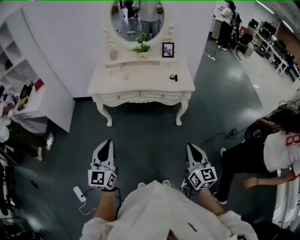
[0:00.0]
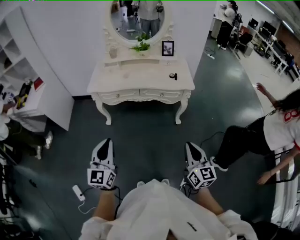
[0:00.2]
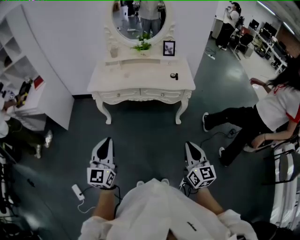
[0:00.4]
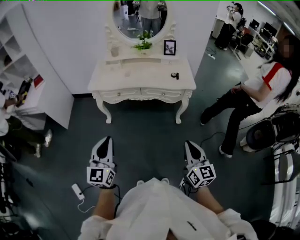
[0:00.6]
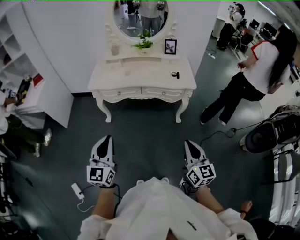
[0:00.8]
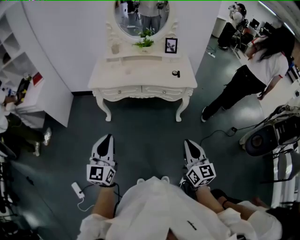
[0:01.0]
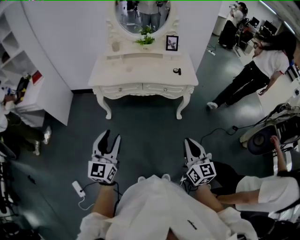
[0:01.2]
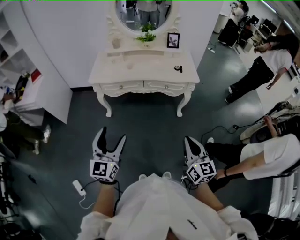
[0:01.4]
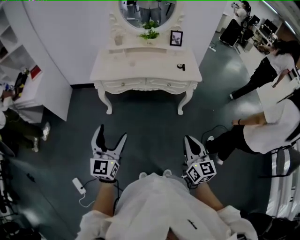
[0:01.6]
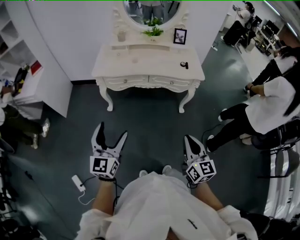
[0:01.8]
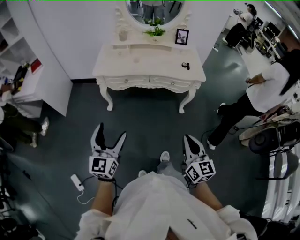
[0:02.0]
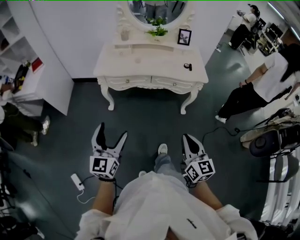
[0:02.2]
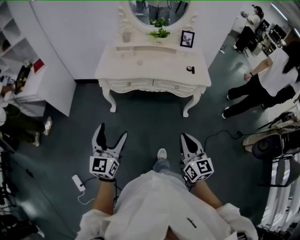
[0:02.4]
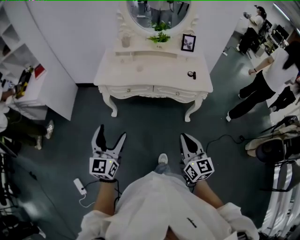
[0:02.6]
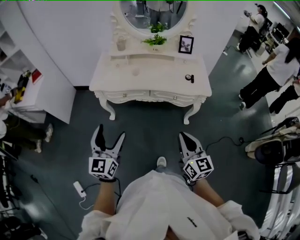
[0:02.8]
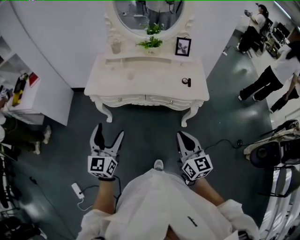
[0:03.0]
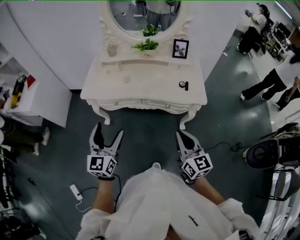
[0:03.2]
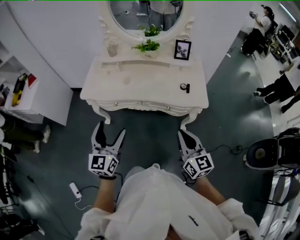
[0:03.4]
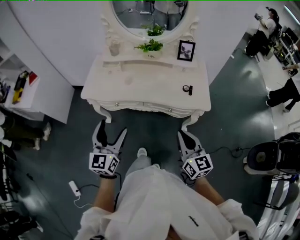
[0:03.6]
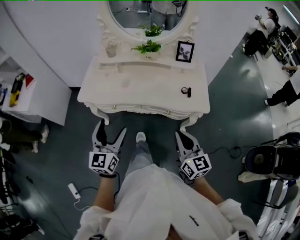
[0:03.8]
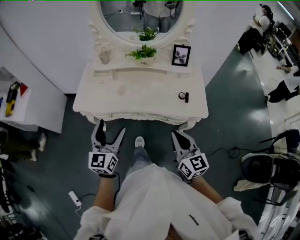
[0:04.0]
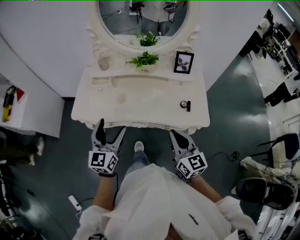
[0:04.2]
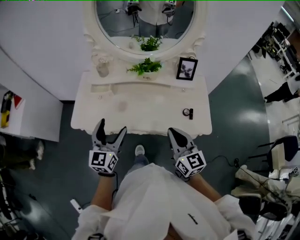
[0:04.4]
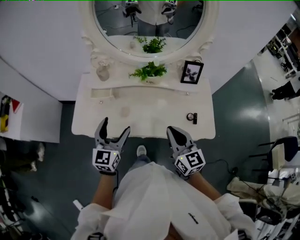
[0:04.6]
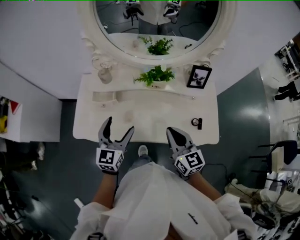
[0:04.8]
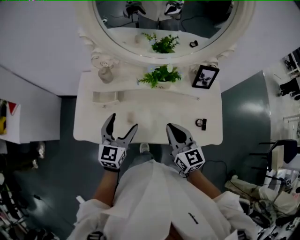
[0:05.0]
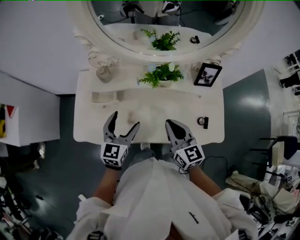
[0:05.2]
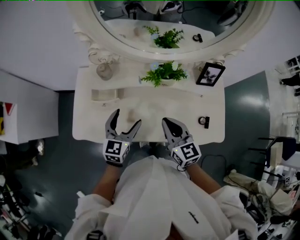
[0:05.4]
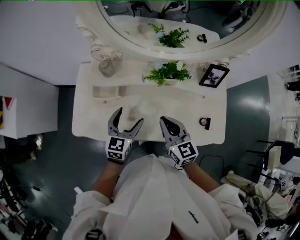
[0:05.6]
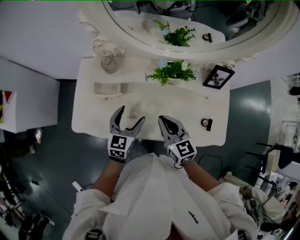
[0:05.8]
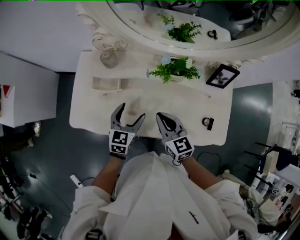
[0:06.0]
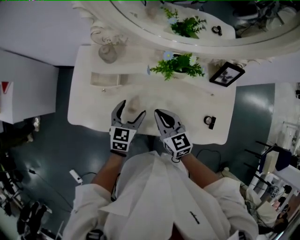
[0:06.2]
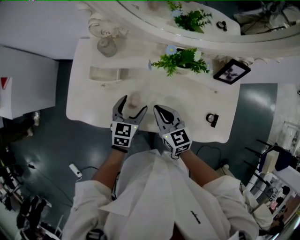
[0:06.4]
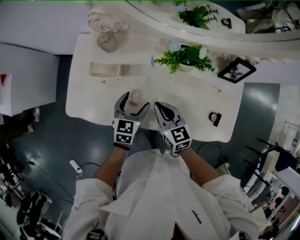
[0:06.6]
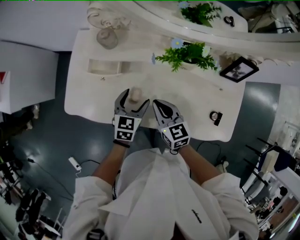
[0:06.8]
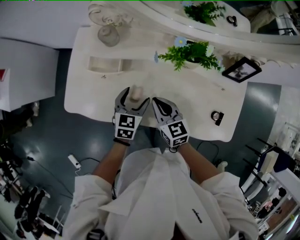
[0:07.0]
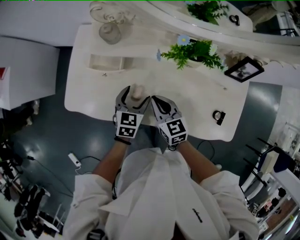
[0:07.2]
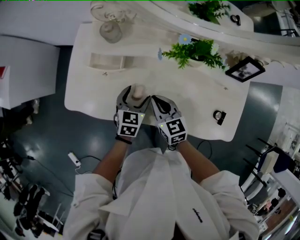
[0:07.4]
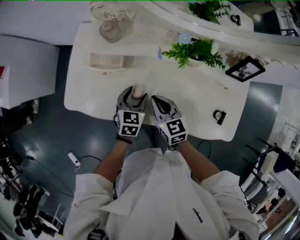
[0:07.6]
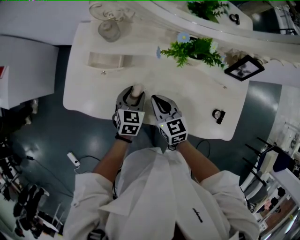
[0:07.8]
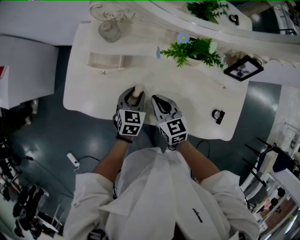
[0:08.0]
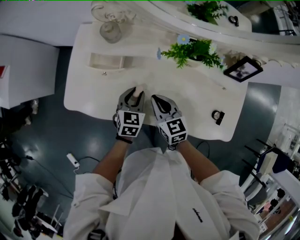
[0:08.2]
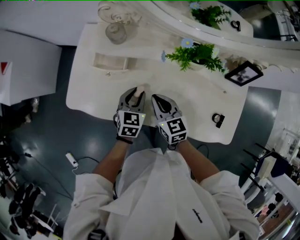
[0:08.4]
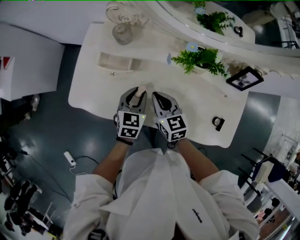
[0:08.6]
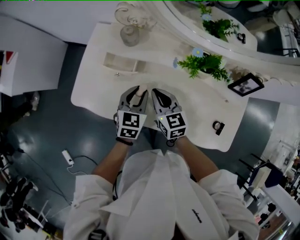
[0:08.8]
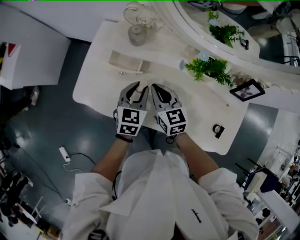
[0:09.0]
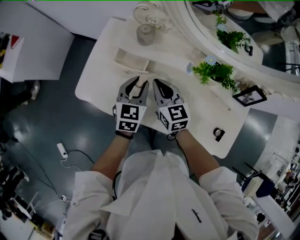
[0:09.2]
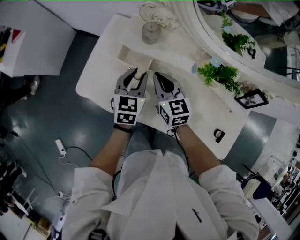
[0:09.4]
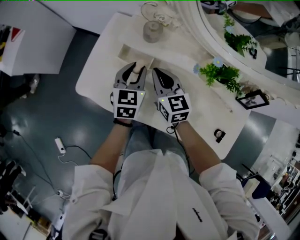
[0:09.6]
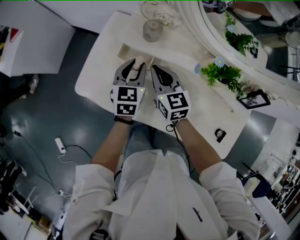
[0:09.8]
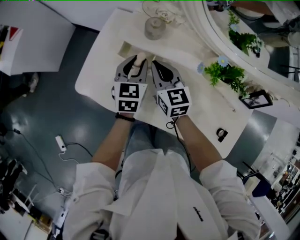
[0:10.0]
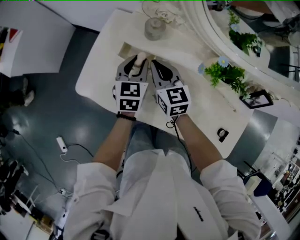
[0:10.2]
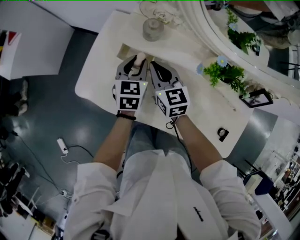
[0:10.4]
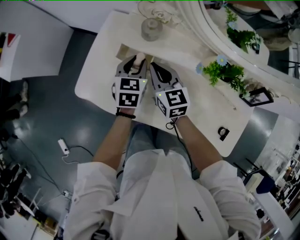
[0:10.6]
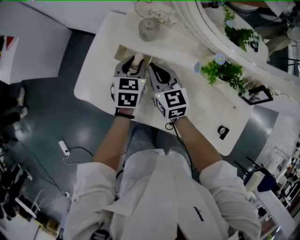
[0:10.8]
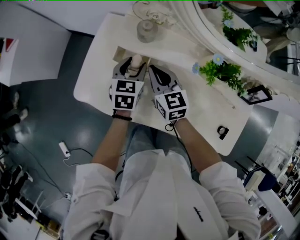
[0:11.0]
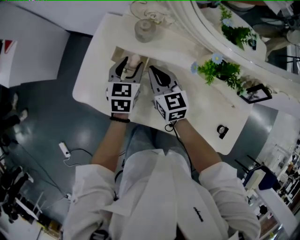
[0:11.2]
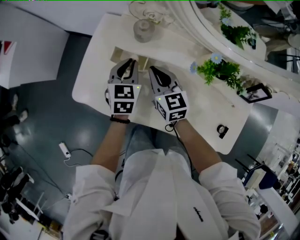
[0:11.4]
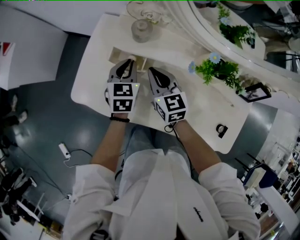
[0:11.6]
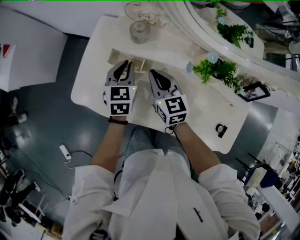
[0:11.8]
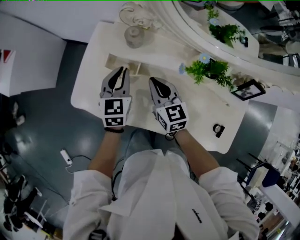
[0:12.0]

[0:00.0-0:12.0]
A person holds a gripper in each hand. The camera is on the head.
0.0 to 1.6 s: The left gripper goes some 5 cm to the left, and opens. The right gripper heads to the left, covering about 10 cm.
1.6 to 3.0 s: Both grippers travel together forward, roughly 20 cm.
3.0 to 4.4 s: Both grippers move forward, some 30 cm.
4.4 to 6.0 s: The right gripper moves forward, downward and to the left, approximately 30 cm, while the left gripper shifts roughly 25 cm forward and downward, and rotates some 20 degrees.
6.0 to 7.6 s: The grippers both shift downward by some 10 cm.
7.6 to 9.0 s: The right gripper is displaced forward and to the left by roughly 10 cm. The left gripper heads upward, covering approximately 10 cm, and closes.
9.0 to 10.4 s: Both grippers move forward, about 10 cm.
10.4 to 12.0 s: The right gripper changes place by roughly 5 cm.

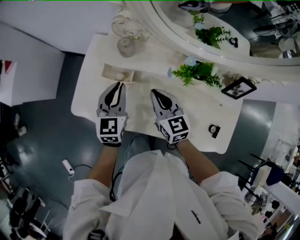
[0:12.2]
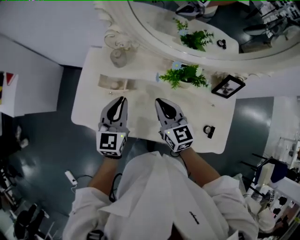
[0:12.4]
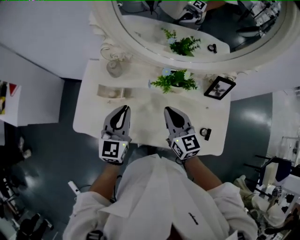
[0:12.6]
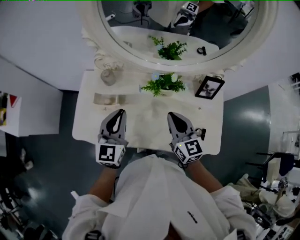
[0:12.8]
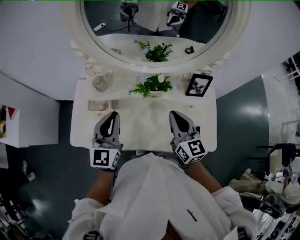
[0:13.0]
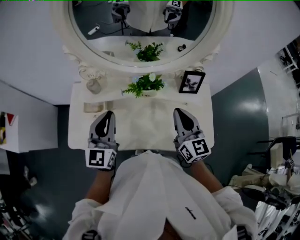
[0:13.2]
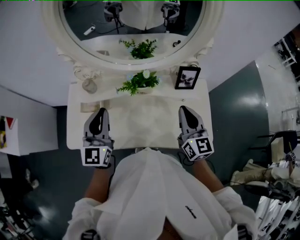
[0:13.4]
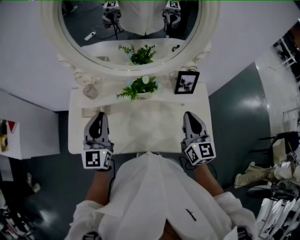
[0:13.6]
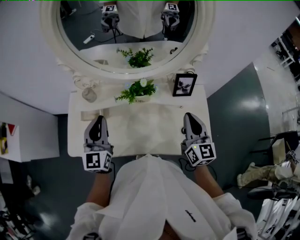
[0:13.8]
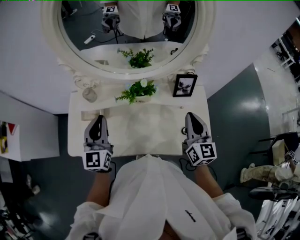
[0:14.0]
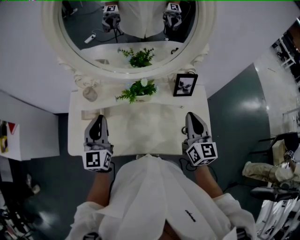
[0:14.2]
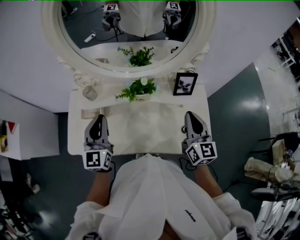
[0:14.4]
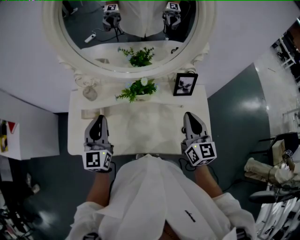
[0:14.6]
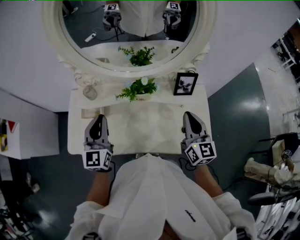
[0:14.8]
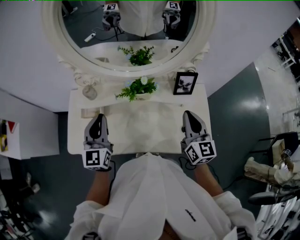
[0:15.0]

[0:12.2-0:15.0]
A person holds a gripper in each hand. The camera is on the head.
12.2 to 13.6 s: The right gripper is displaced to the right and upward by roughly 35 cm, and rotates approximately 40 degrees; the left gripper is displaced upward and to the right by some 20 cm, and rotates about 30 degrees.
13.6 to 15.0 s: The grippers stay close to where they were, moving slightly.

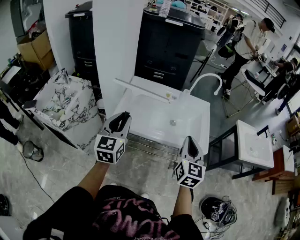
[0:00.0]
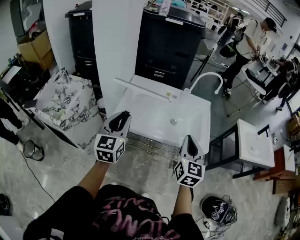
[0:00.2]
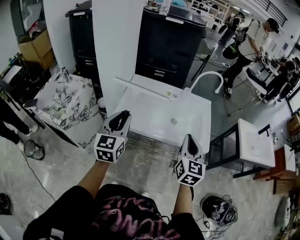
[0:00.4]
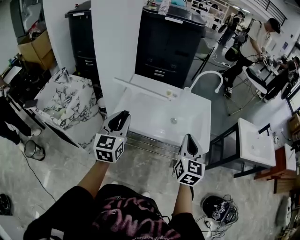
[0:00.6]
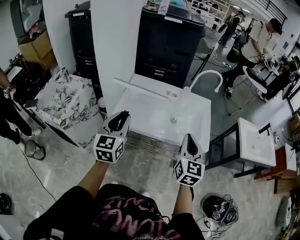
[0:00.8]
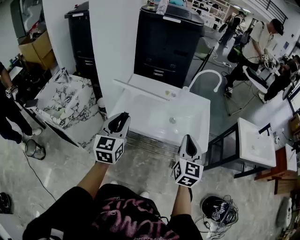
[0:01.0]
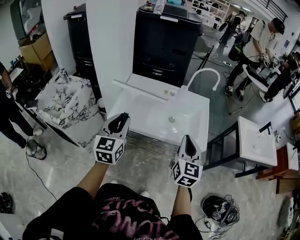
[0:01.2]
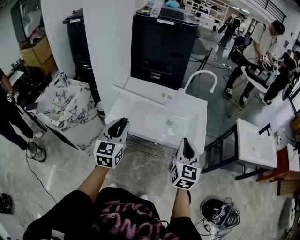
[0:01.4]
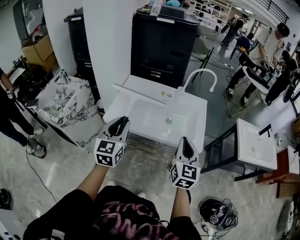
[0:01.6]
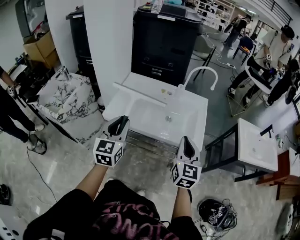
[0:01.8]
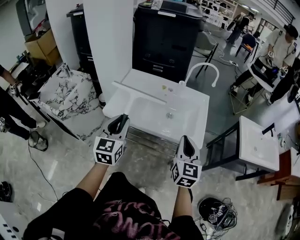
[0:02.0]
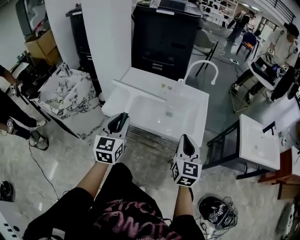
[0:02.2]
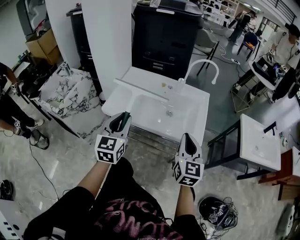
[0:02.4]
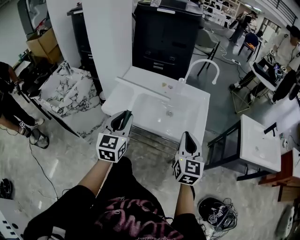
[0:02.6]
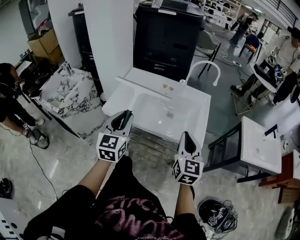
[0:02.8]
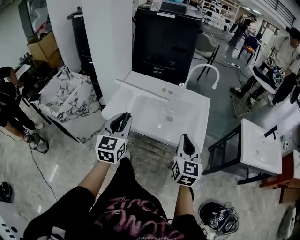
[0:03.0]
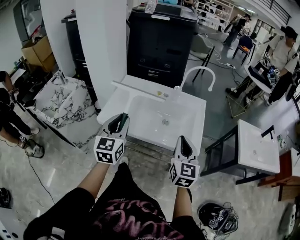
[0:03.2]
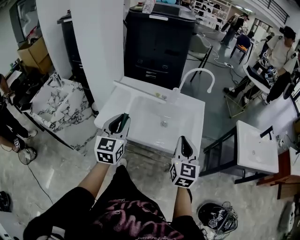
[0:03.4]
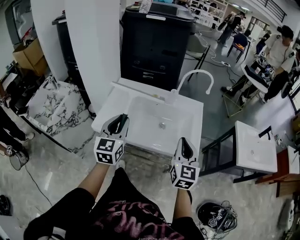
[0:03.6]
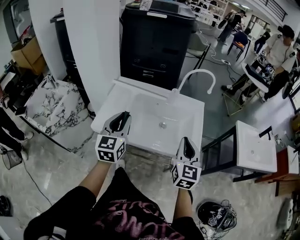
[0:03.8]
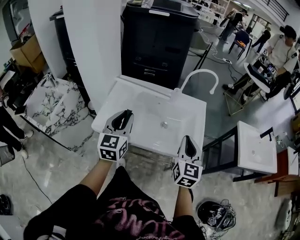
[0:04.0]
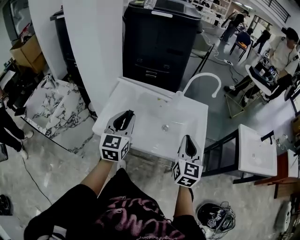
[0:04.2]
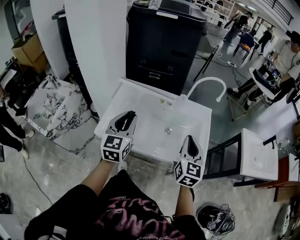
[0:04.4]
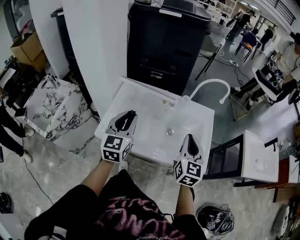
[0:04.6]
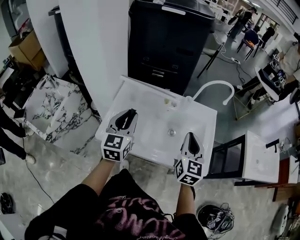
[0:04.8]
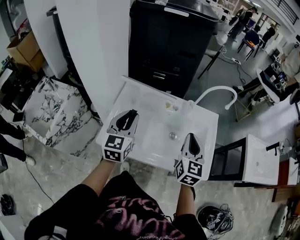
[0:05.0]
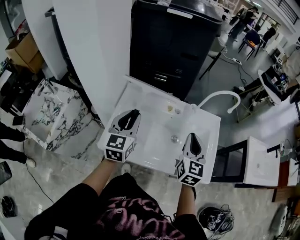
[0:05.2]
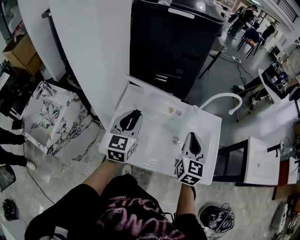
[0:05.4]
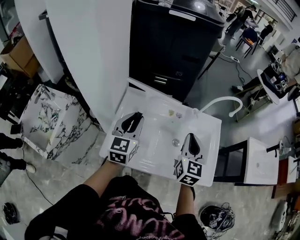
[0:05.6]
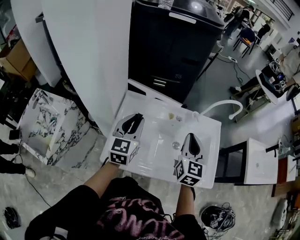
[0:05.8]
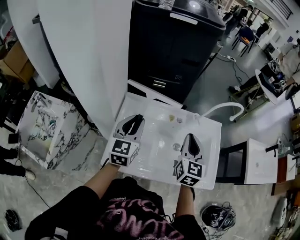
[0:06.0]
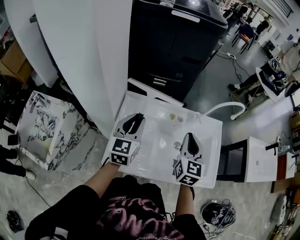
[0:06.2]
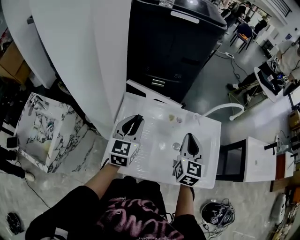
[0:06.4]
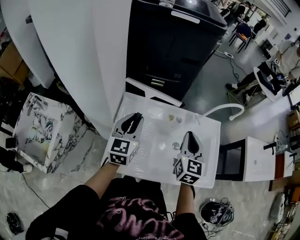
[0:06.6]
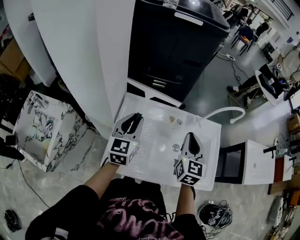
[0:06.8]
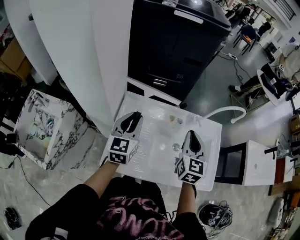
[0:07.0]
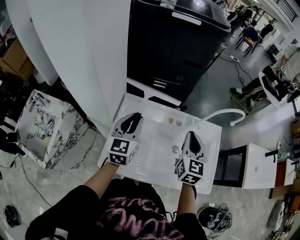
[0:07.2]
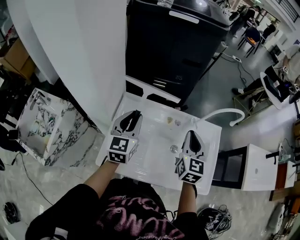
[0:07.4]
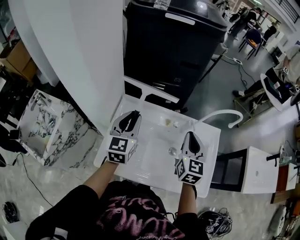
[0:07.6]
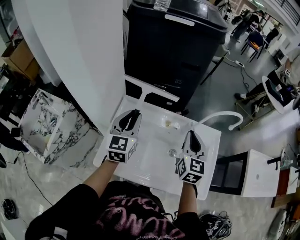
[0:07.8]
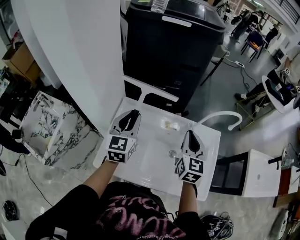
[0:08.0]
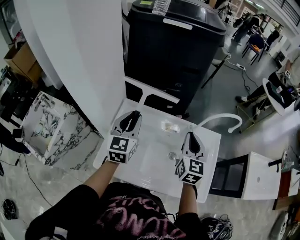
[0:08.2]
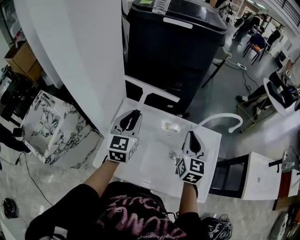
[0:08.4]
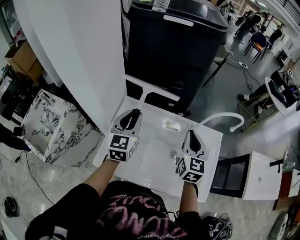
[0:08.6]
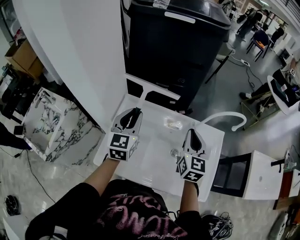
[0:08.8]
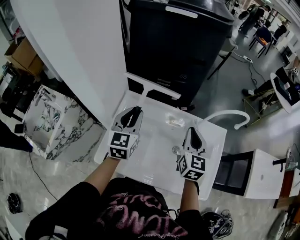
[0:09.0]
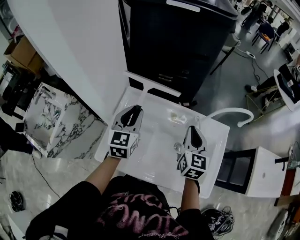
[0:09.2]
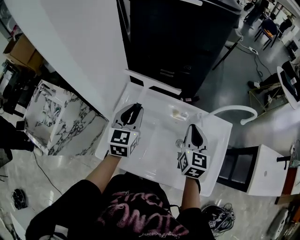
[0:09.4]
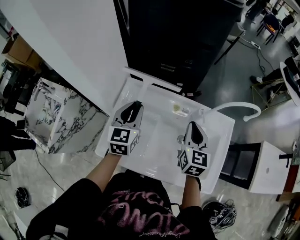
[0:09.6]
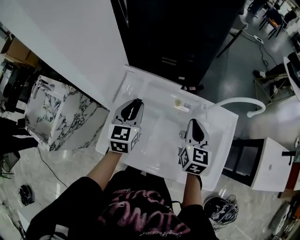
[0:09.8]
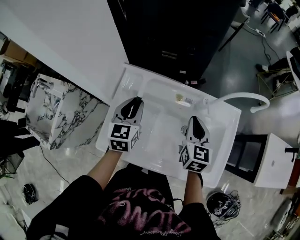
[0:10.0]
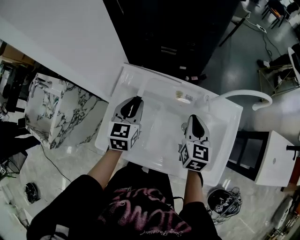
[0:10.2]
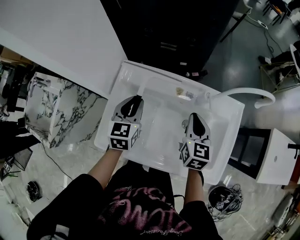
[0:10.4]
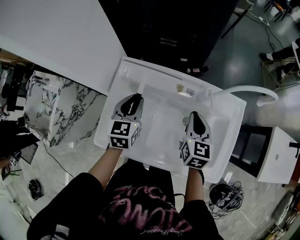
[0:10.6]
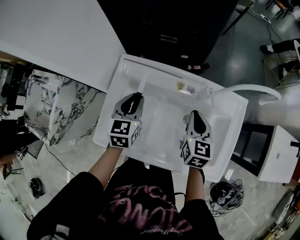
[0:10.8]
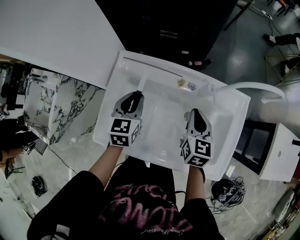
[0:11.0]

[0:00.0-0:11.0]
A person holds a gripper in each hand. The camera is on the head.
0.0 to 1.6 s: The grippers both shift to the right by about 5 cm.
1.6 to 3.2 s: The left gripper changes place by approximately 5 cm, while the right gripper changes place by about 5 cm.
3.2 to 4.8 s: Both grippers move forward, about 15 cm.
4.8 to 6.2 s: Both grippers move forward and to the left, approximately 15 cm.
6.2 to 7.8 s: The left gripper changes place by approximately 5 cm. Meanwhile the right gripper moves forward, about 5 cm.
7.8 to 9.4 s: The grippers both shift downward by some 5 cm.
9.4 to 11.0 s: The grippers both shift downward by approximately 10 cm.
